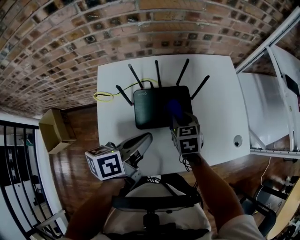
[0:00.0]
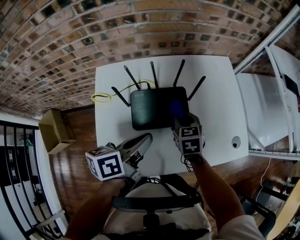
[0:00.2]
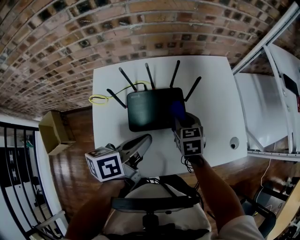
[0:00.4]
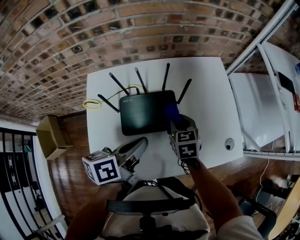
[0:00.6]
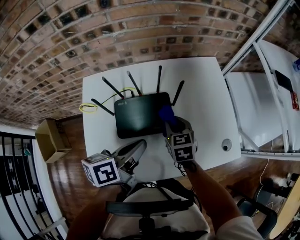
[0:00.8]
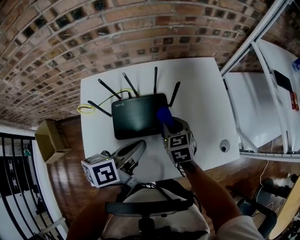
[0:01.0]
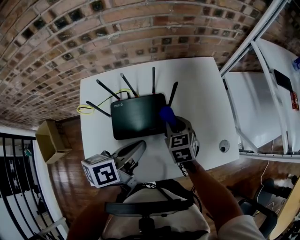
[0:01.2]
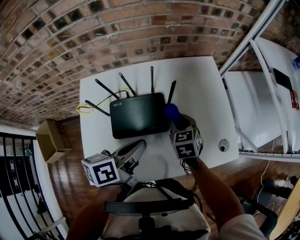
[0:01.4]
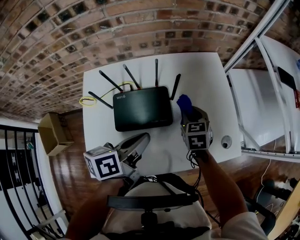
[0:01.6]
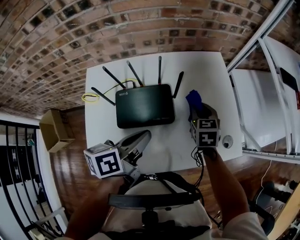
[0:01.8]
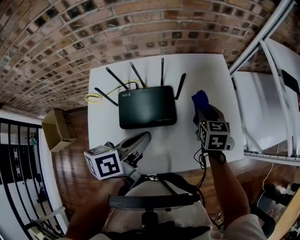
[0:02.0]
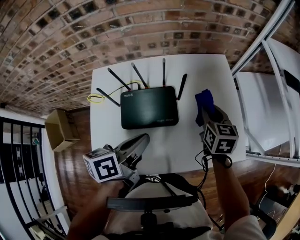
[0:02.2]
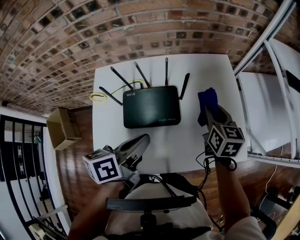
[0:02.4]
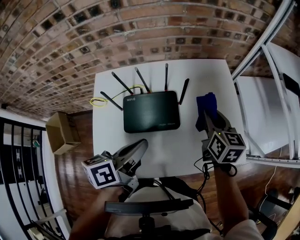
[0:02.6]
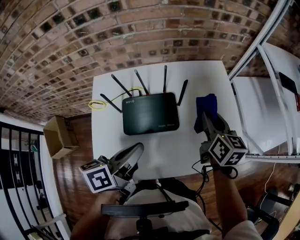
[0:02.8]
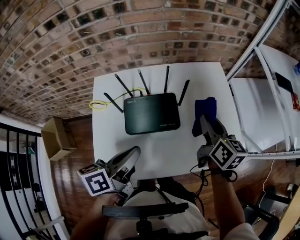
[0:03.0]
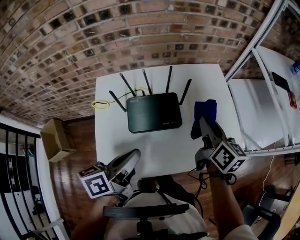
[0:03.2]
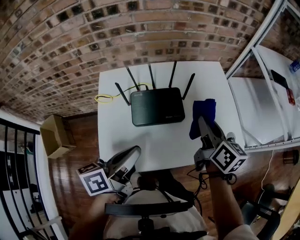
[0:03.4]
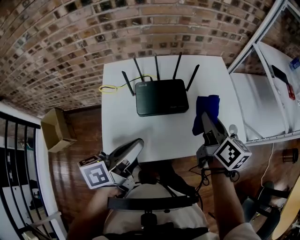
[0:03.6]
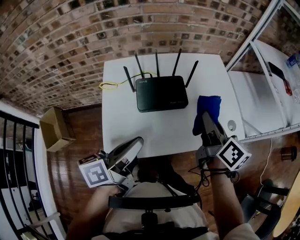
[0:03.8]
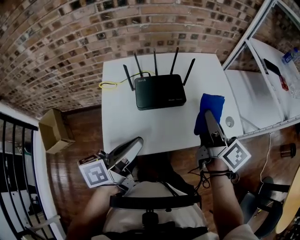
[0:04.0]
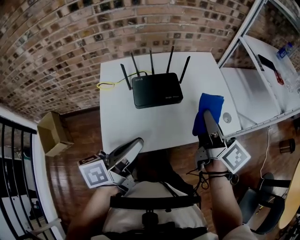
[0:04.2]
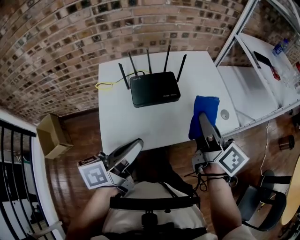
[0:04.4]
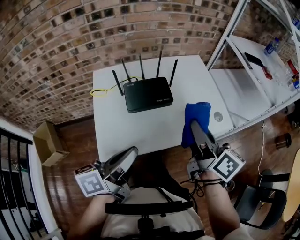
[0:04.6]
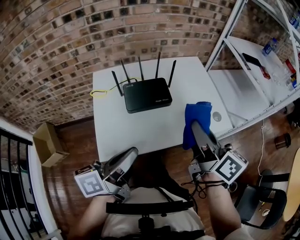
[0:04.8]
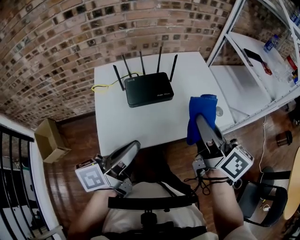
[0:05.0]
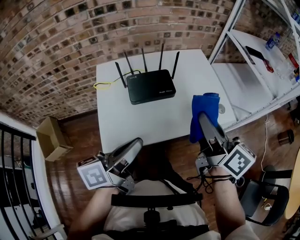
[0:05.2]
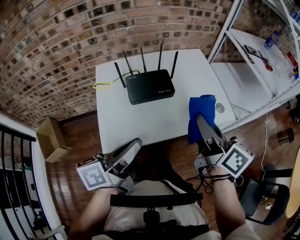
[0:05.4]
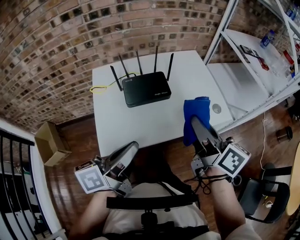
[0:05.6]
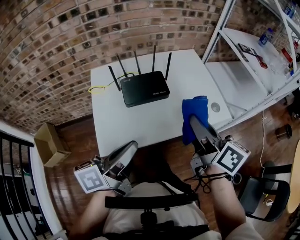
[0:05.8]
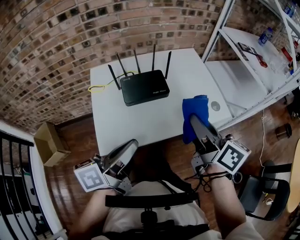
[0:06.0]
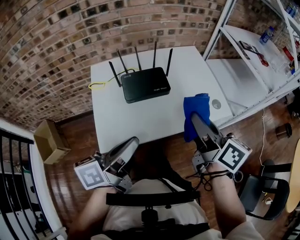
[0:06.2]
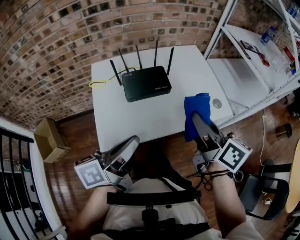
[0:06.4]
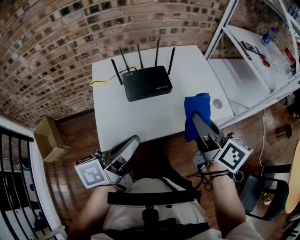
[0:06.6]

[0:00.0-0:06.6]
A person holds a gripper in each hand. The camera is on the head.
0:00.0 to 0:01.6: The left gripper is displaced to the right by roughly 10 cm, while the right gripper goes approximately 15 cm to the right and forward.
0:01.6 to 0:03.2: The right gripper is displaced upward and backward by approximately 20 cm, and turns by about 50 degrees, while the left gripper goes roughly 15 cm backward, to the left and upward.
0:03.2 to 0:05.0: Both grippers move backward and upward, roughly 25 cm.
0:05.0 to 0:06.6: There are only small adjustments of the grippers.

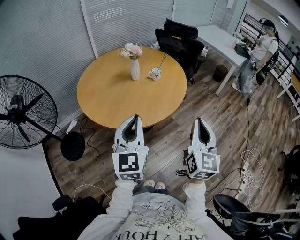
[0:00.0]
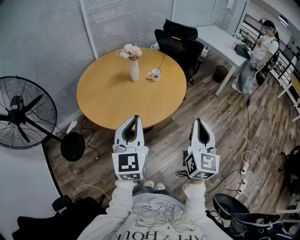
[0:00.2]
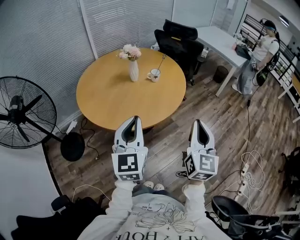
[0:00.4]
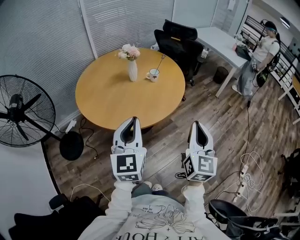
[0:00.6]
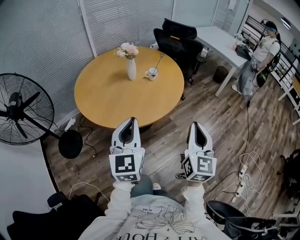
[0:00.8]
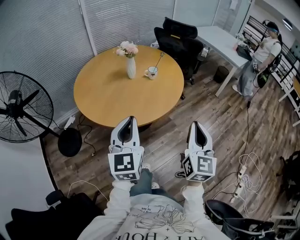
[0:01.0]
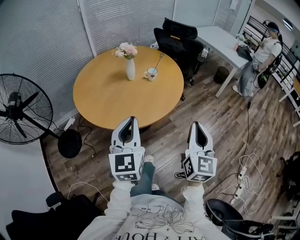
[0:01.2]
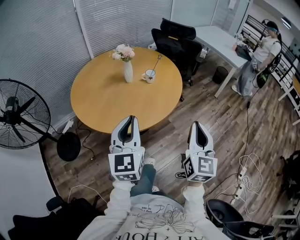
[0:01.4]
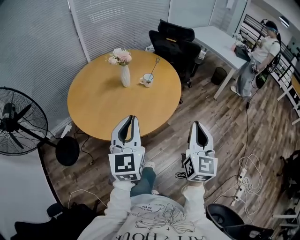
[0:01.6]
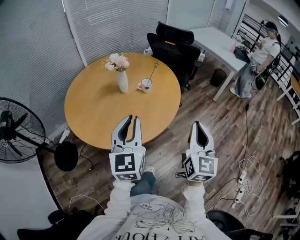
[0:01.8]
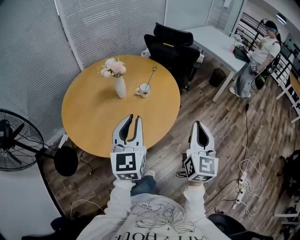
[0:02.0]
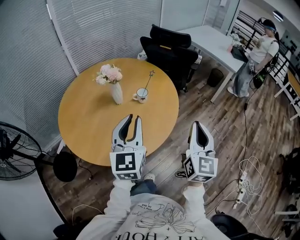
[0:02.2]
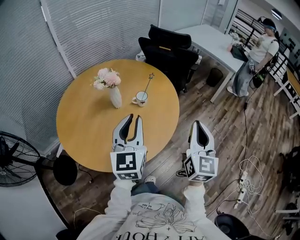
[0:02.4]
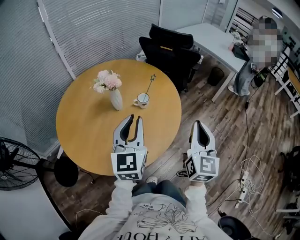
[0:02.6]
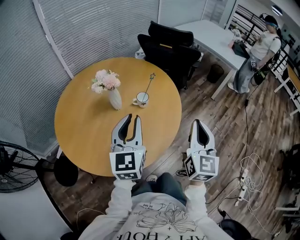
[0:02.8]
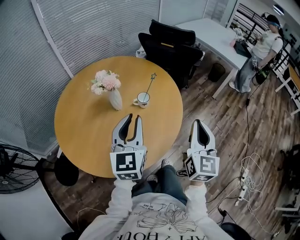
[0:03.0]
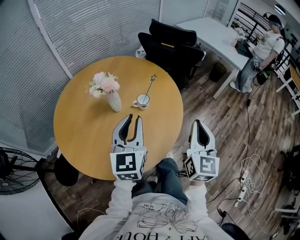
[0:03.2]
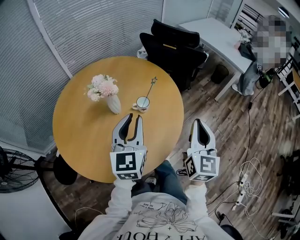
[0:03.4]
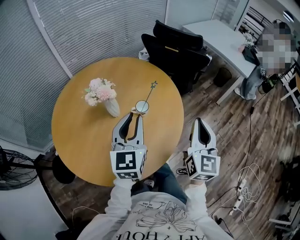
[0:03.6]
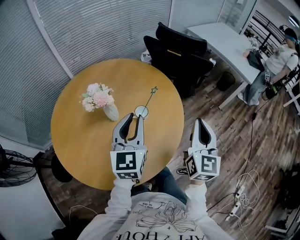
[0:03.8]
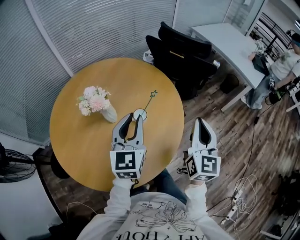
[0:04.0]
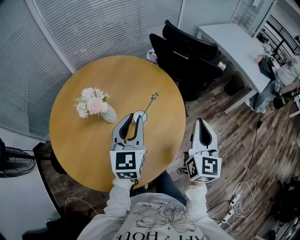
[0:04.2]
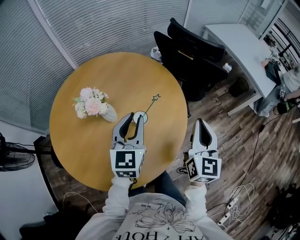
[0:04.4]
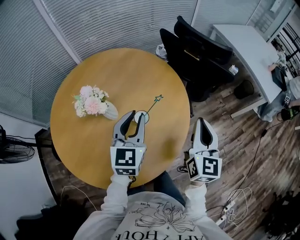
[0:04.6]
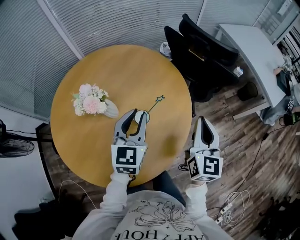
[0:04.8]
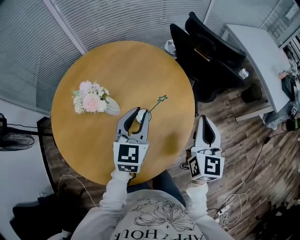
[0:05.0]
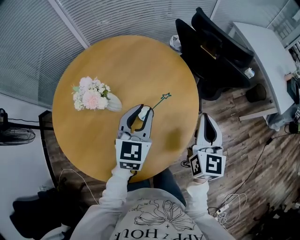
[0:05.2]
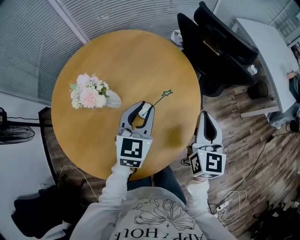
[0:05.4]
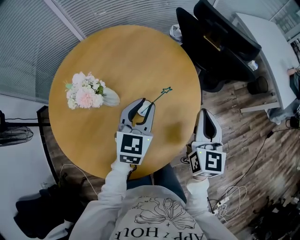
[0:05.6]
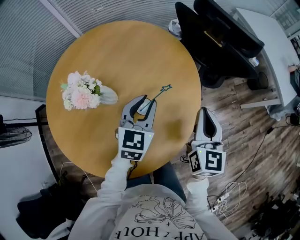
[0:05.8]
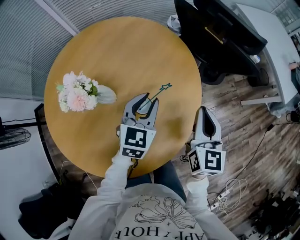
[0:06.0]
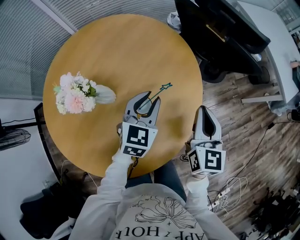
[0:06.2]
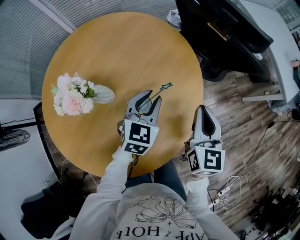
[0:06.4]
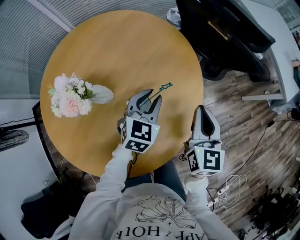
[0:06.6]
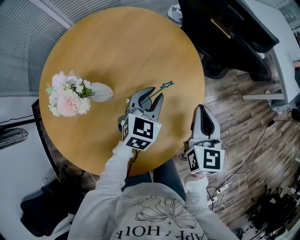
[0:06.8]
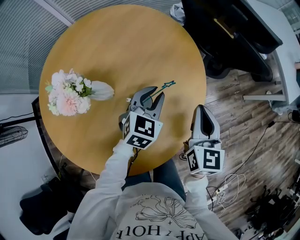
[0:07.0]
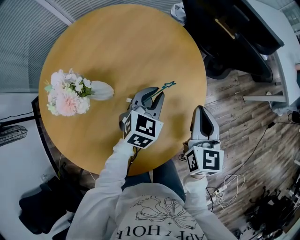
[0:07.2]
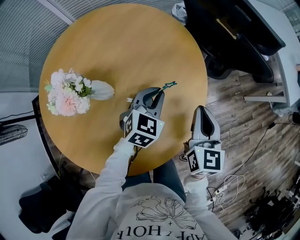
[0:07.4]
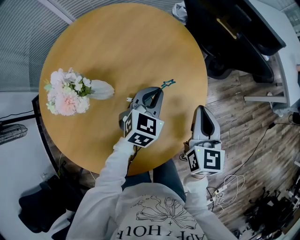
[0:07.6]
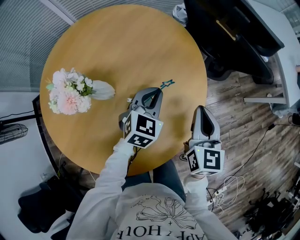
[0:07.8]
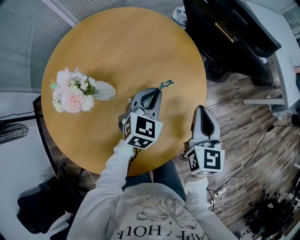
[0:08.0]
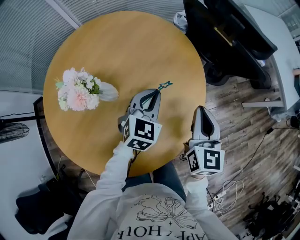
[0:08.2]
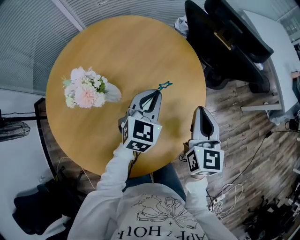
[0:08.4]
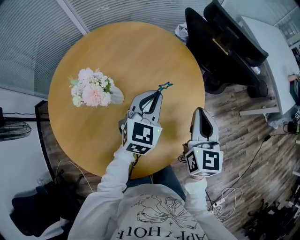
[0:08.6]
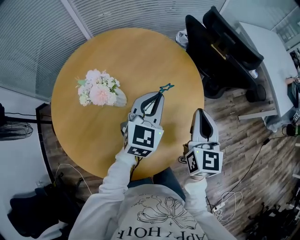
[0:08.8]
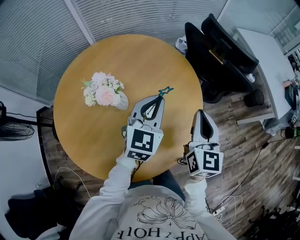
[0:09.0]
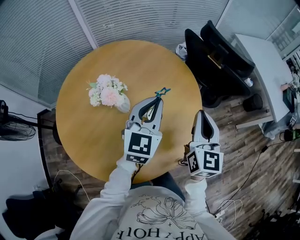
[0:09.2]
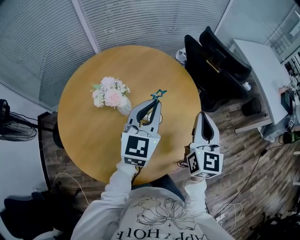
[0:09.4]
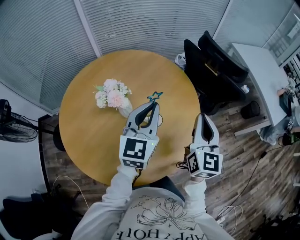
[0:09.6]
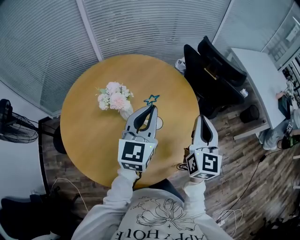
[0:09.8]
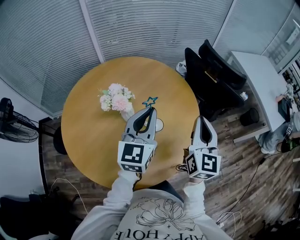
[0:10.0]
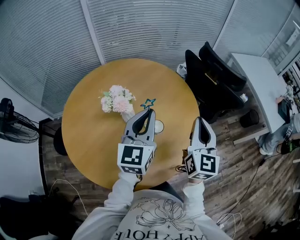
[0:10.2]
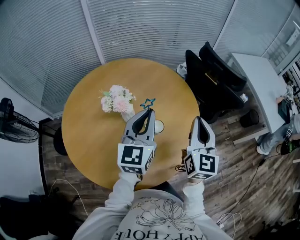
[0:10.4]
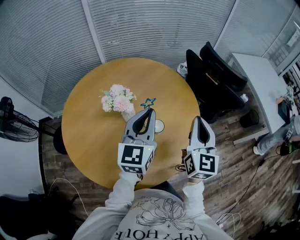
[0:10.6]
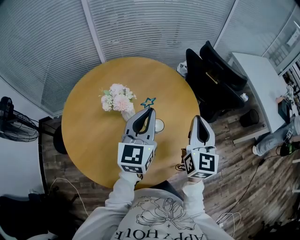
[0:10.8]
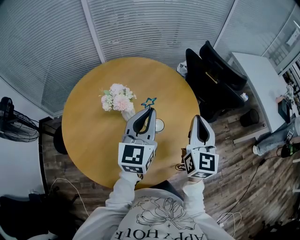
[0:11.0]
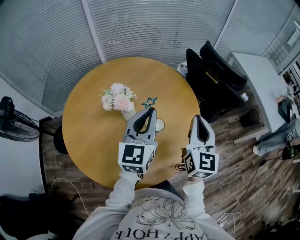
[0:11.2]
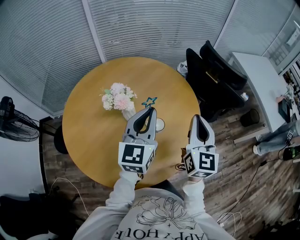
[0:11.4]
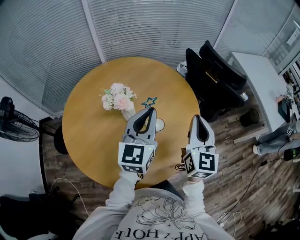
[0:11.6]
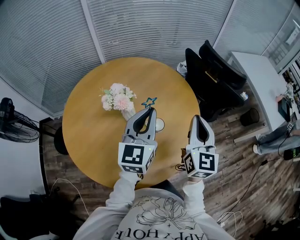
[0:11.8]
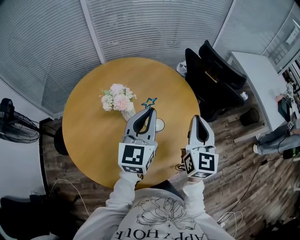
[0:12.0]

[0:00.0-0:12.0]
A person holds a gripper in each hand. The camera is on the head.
0:00.0 to 0:01.6: The right gripper heads forward and to the right, covering about 10 cm, while the left gripper shifts some 10 cm forward.
0:01.6 to 0:03.0: The two grippers go roughly 25 cm forward.
0:03.0 to 0:04.4: Both grippers move forward, about 25 cm.
0:04.4 to 0:06.0: The grippers both shift downward and forward by roughly 15 cm.
0:06.0 to 0:07.6: Both grippers move downward, roughly 5 cm. The left gripper closes its fingers.
0:07.6 to 0:09.0: The two grippers go approximately 15 cm upward. The left gripper turns by some 20 degrees.
0:09.0 to 0:10.4: The right gripper is displaced upward by about 5 cm; the left gripper is displaced upward, backward and to the left by approximately 10 cm, and changes its angle by some 20 degrees.
0:10.4 to 0:12.0: The two grippers keep their place.

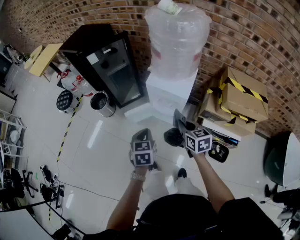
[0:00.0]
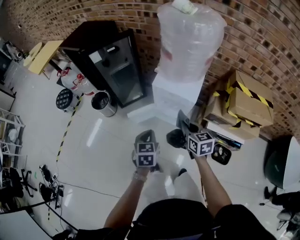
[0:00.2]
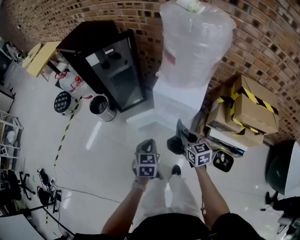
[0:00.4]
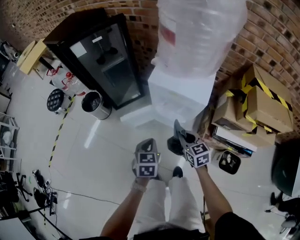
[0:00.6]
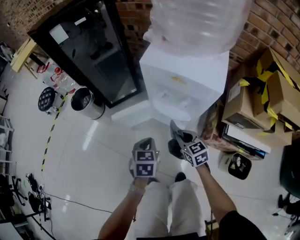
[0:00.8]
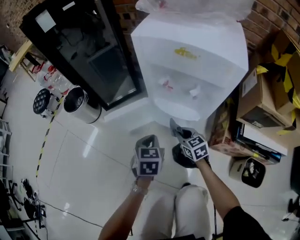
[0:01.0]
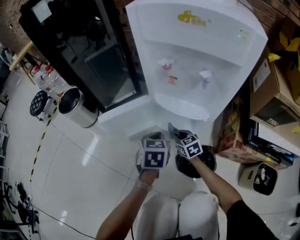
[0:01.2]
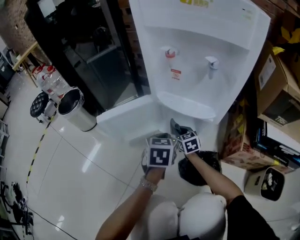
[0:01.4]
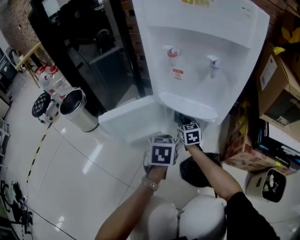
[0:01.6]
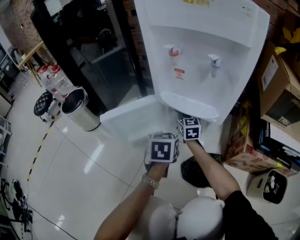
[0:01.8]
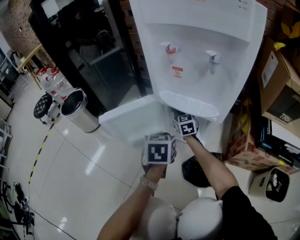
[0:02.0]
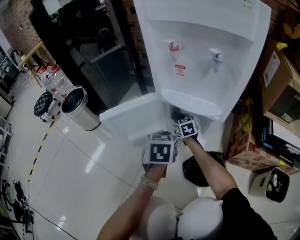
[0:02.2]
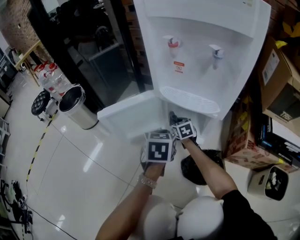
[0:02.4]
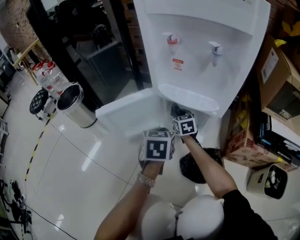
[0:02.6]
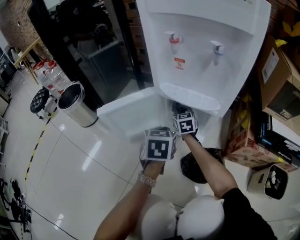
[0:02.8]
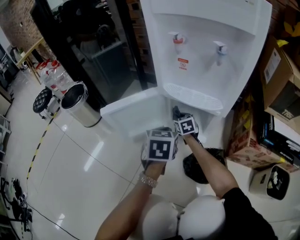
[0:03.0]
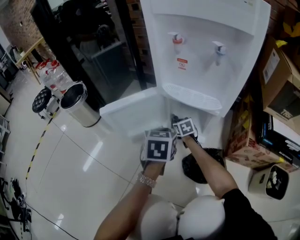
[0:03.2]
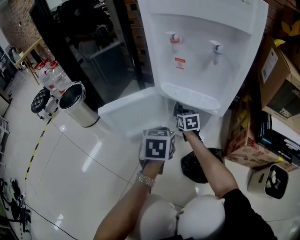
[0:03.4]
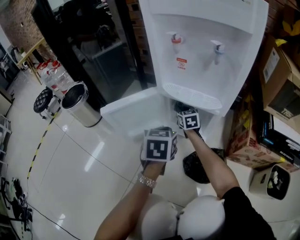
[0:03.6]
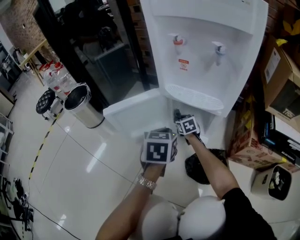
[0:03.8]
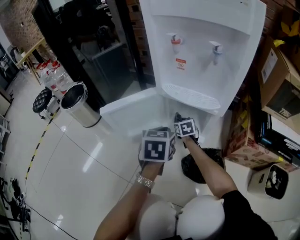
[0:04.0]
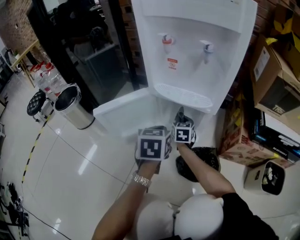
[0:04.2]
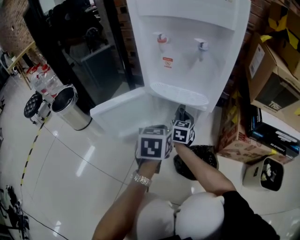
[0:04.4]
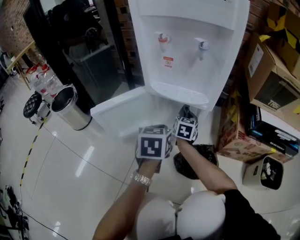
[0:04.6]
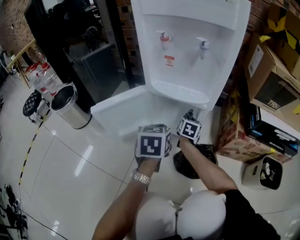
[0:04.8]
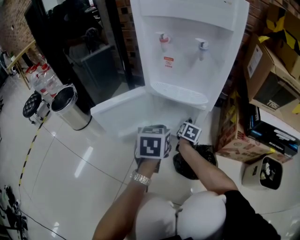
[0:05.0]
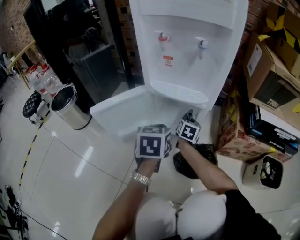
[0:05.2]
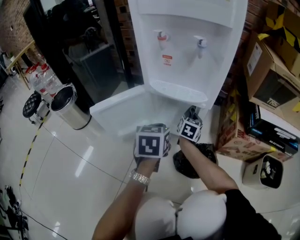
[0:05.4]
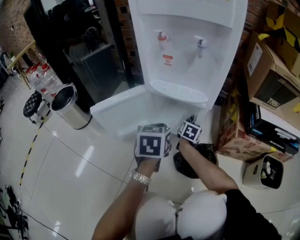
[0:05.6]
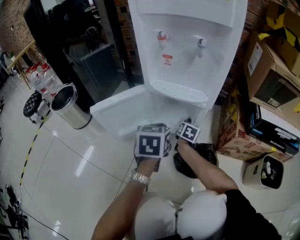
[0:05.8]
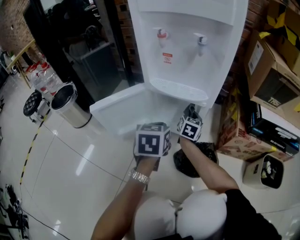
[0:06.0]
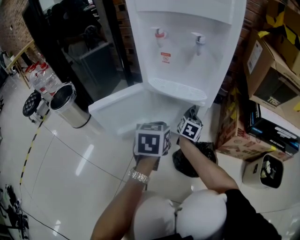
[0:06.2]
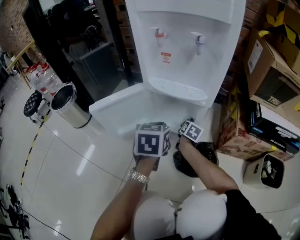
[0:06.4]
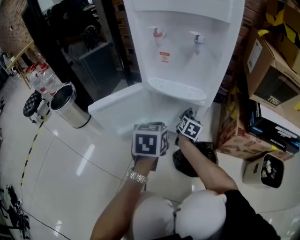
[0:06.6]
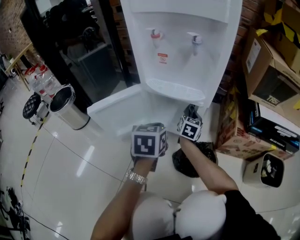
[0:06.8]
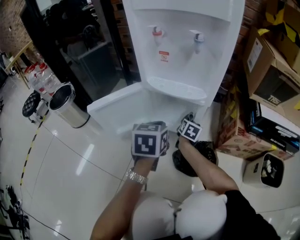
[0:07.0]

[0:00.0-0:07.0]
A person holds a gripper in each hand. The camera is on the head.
0:00.0 to 0:01.4: Both grippers move downward, roughly 70 cm.
0:01.4 to 0:02.8: The right gripper swings up and down, about 10 cm each way, with 2 reversals.
0:02.8 to 0:04.2: The right gripper moves up and down over some 10 cm, changing direction 3 times.
0:04.2 to 0:05.6: The right gripper moves up and down over some 10 cm, changing direction 3 times, and rotates about 30 degrees.
0:05.6 to 0:07.0: The right gripper moves up and down over approximately 10 cm, changing direction 3 times.
